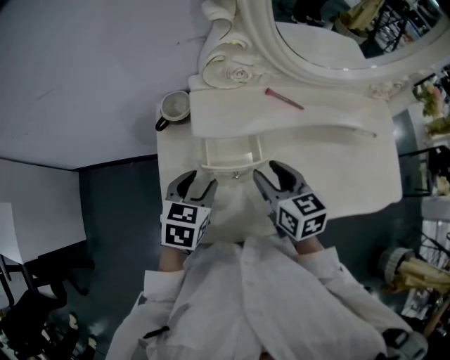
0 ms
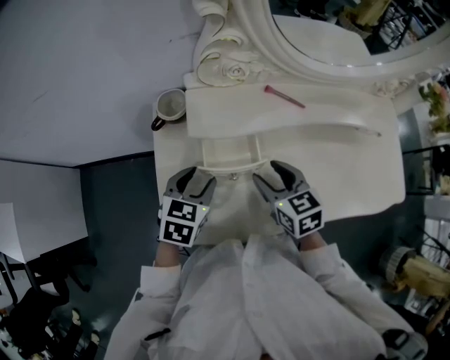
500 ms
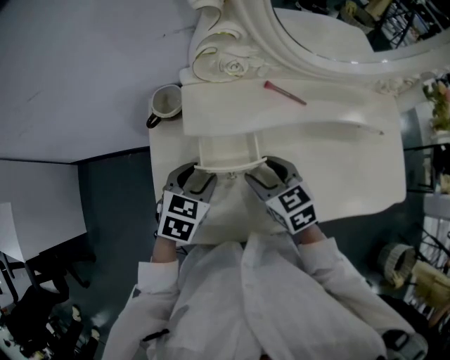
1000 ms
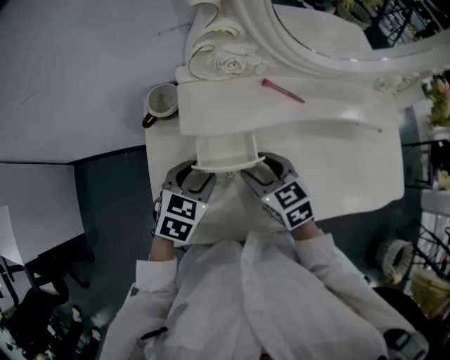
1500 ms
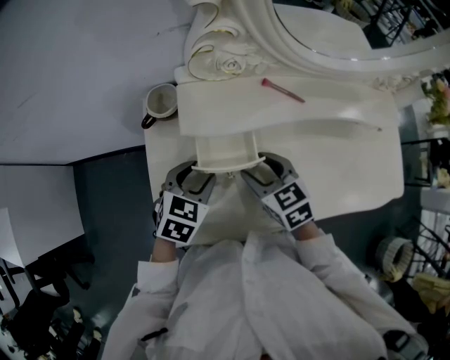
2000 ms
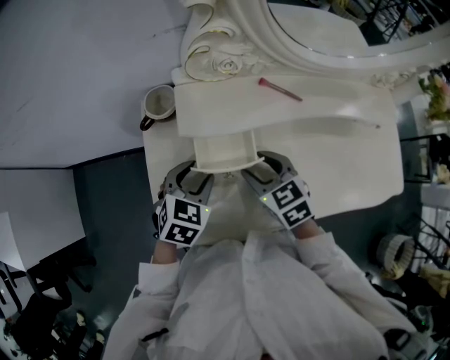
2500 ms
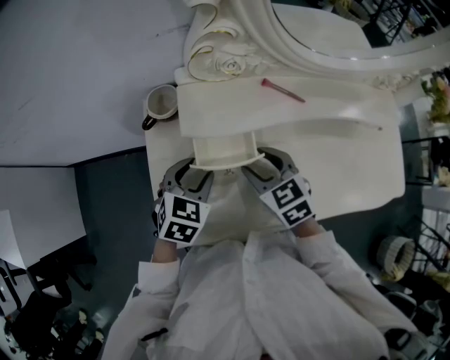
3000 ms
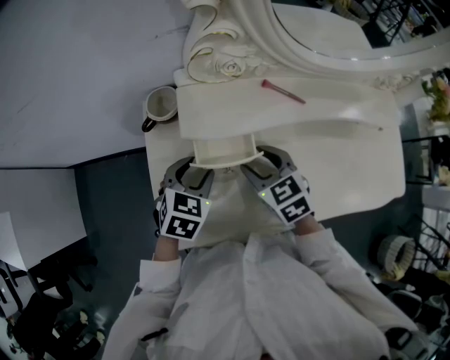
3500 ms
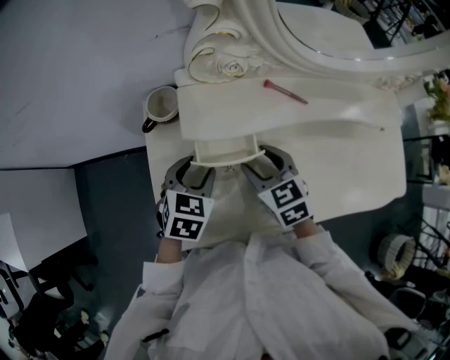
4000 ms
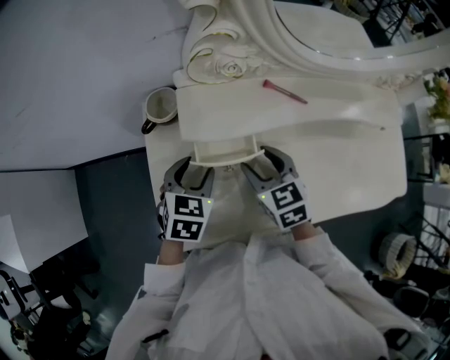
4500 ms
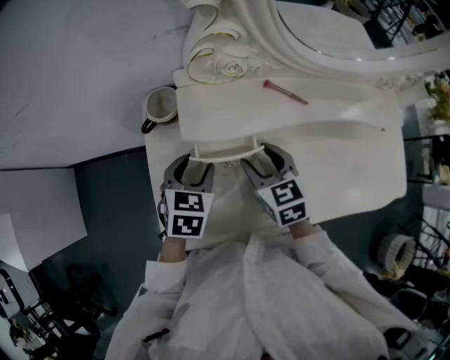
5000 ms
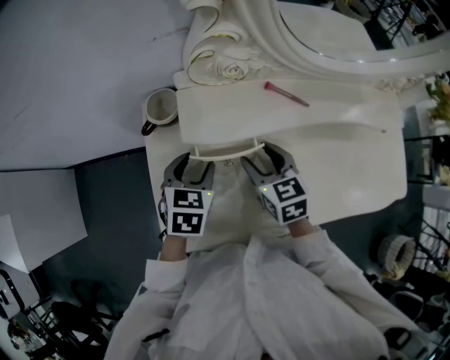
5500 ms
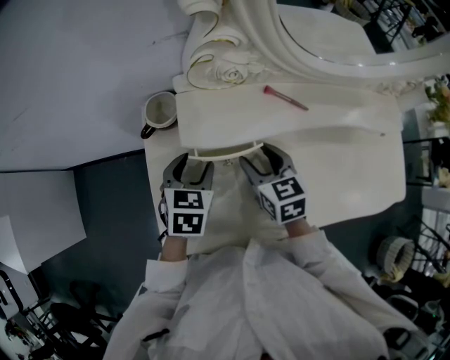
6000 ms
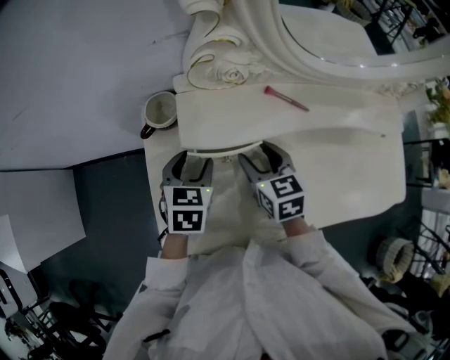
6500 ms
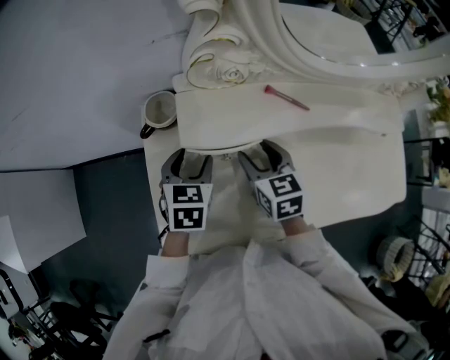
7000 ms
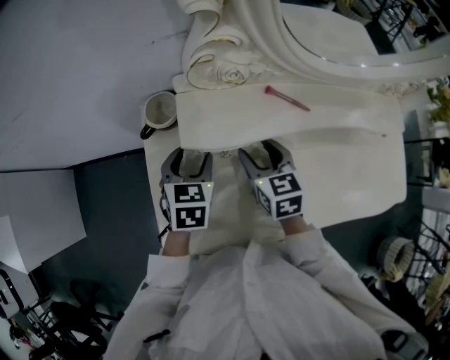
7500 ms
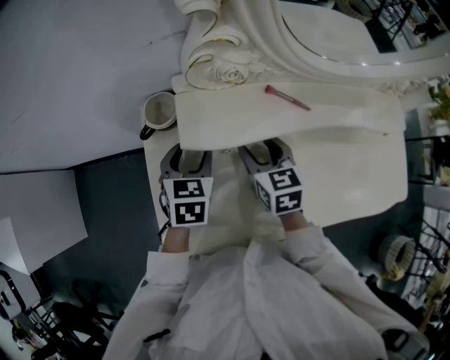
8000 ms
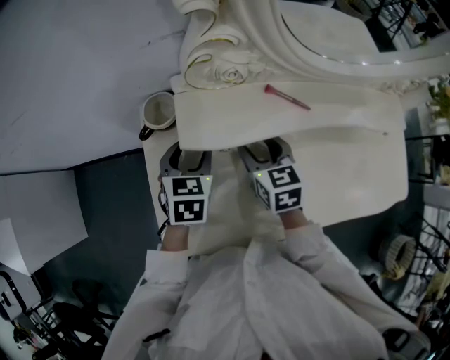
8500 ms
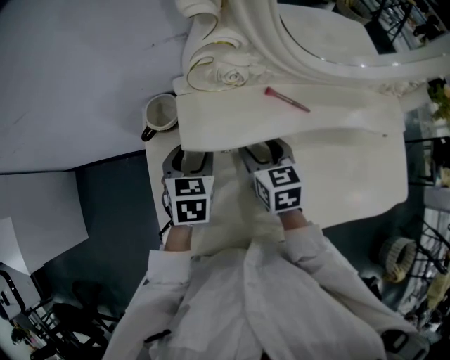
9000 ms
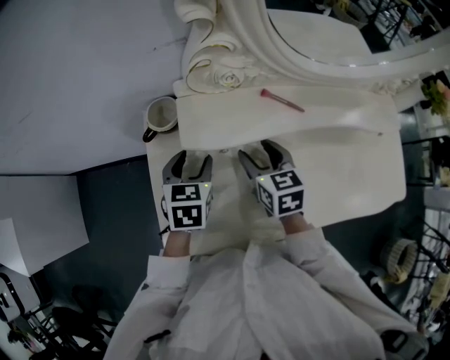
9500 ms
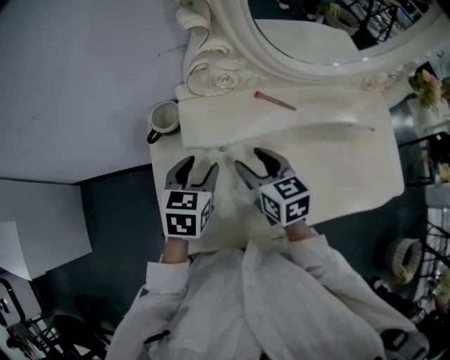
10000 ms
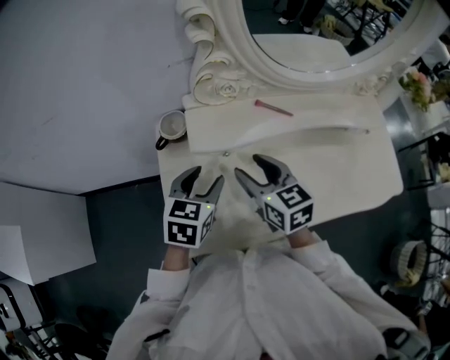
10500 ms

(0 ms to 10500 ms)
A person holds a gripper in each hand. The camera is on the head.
0 ms - 2000 ms: The right gripper is displaced downward by about 5 cm, and swivels approximately 20 degrees.
2000 ms - 4000 ms: The grippers stay close to where they were, moving slightly.
4000 ms - 6500 ms: The grippers move only a little.
6500 ms - 8500 ms: The grippers make only small movements.
8500 ms - 10500 ms: The right gripper travels upward and backward by approximately 10 cm. Meanwhile the left gripper is displaced backward and upward by some 10 cm.

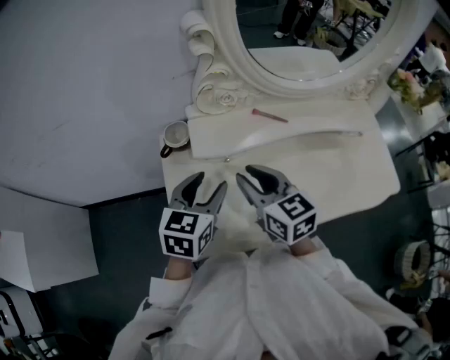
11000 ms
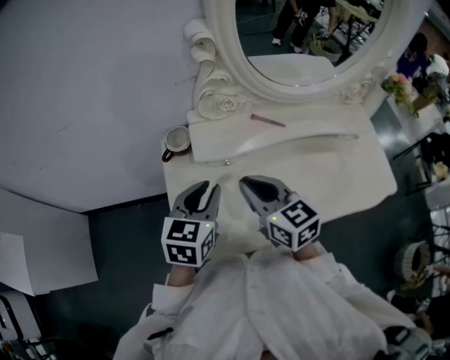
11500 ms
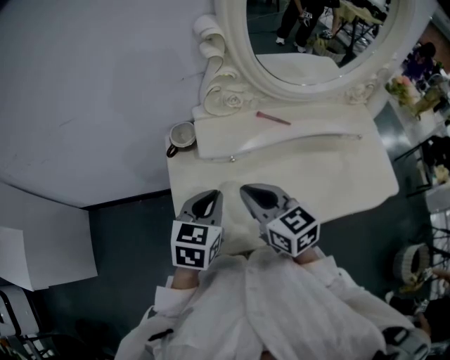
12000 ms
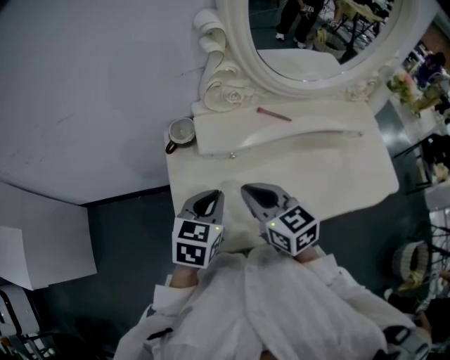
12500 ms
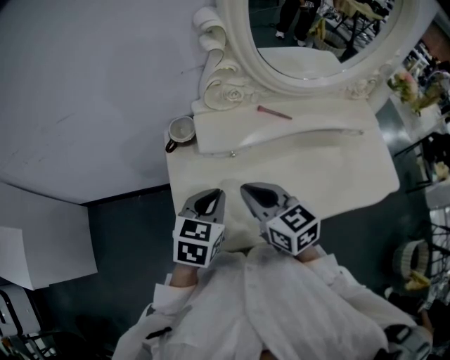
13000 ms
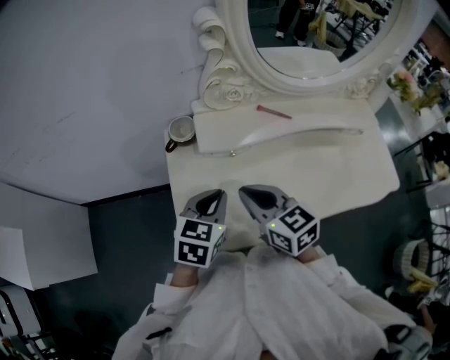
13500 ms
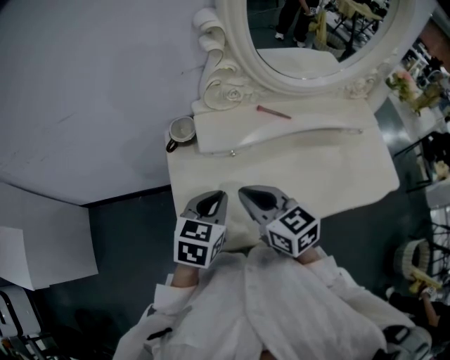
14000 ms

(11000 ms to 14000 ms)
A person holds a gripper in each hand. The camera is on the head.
11000 ms - 12500 ms: The right gripper changes place by roughly 5 cm, and closes its fingers. The left gripper shifts by approximately 5 cm, and closes.
12500 ms - 14000 ms: The grippers move only a little.

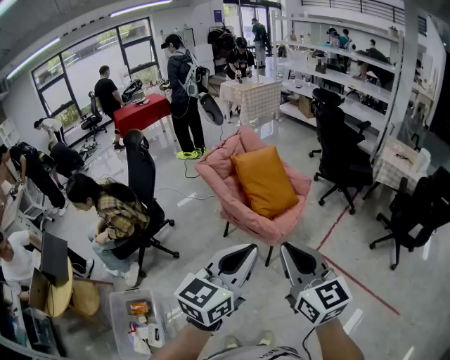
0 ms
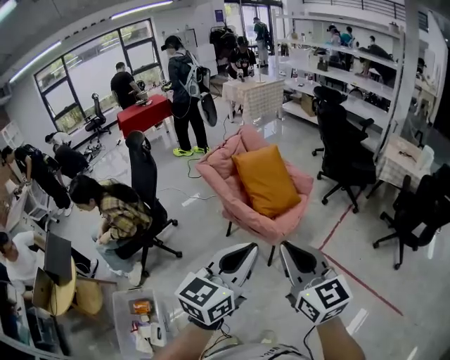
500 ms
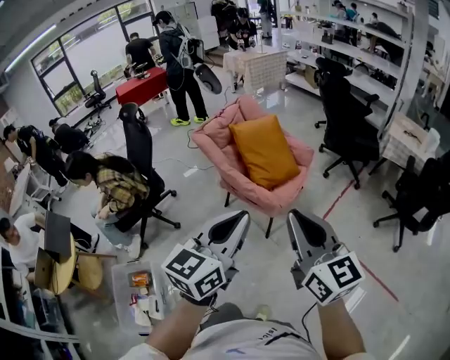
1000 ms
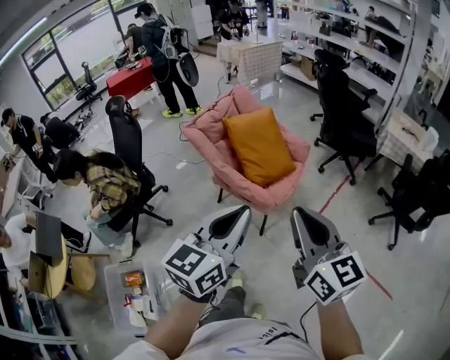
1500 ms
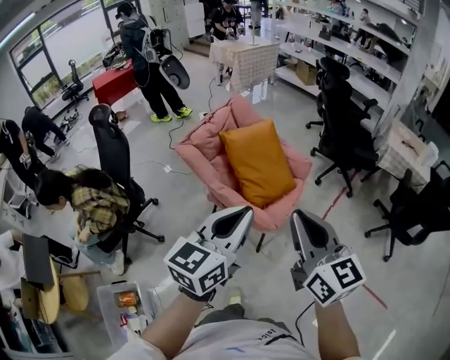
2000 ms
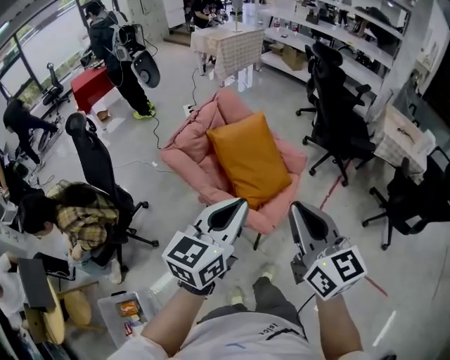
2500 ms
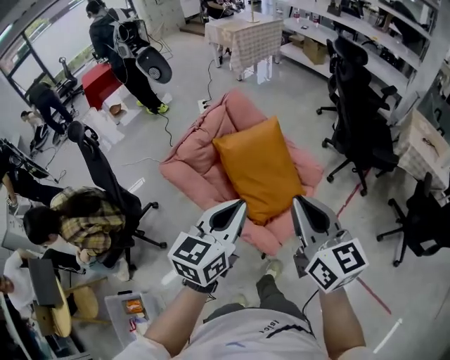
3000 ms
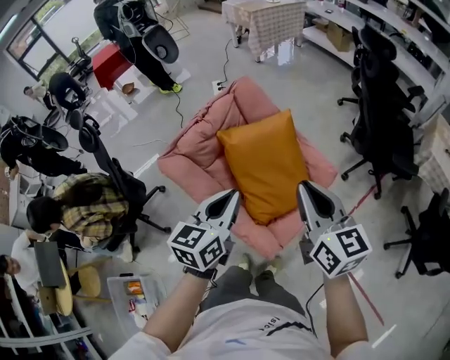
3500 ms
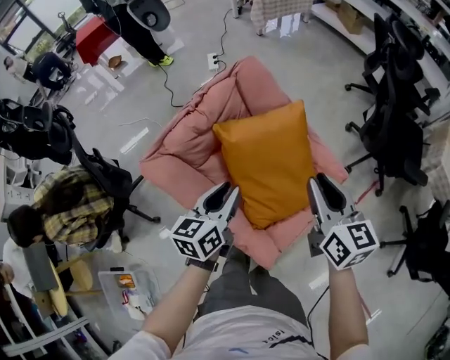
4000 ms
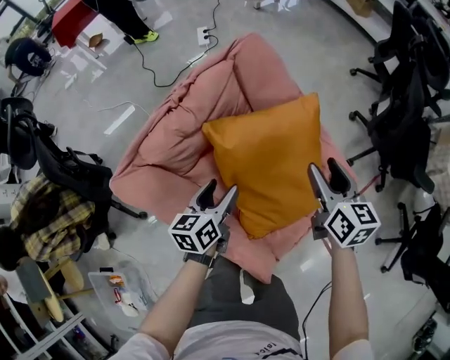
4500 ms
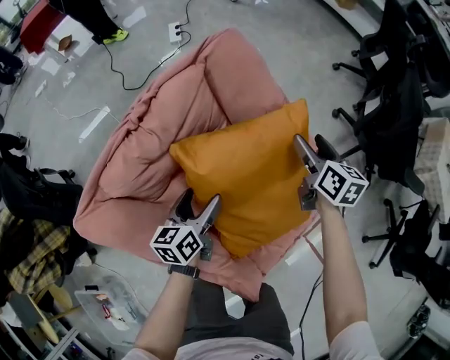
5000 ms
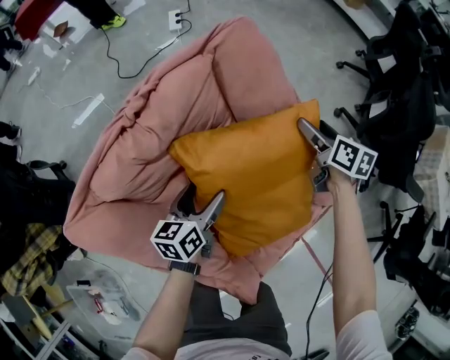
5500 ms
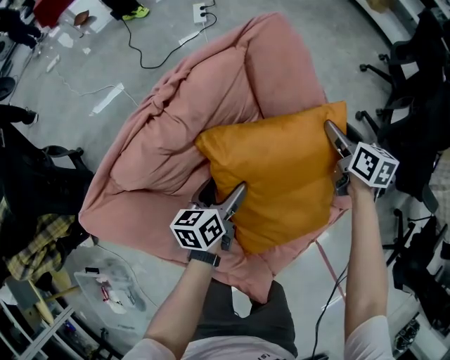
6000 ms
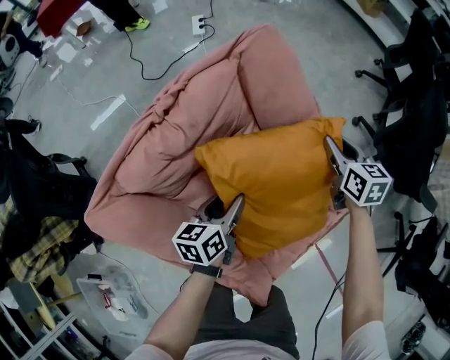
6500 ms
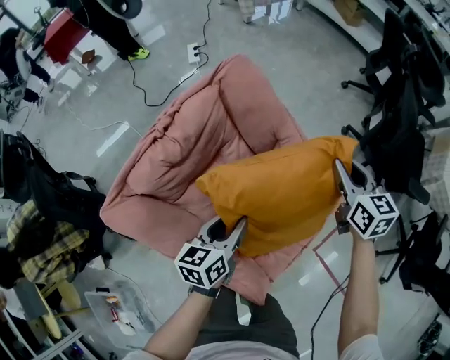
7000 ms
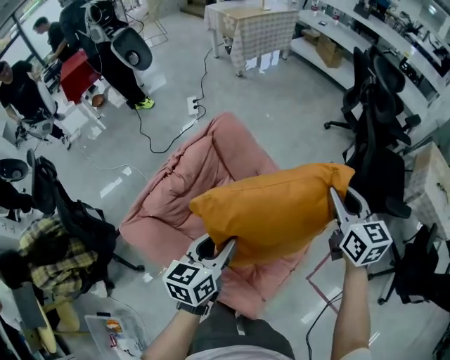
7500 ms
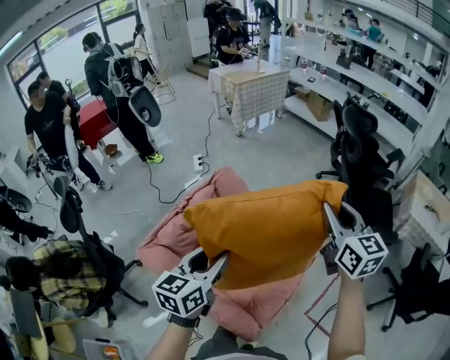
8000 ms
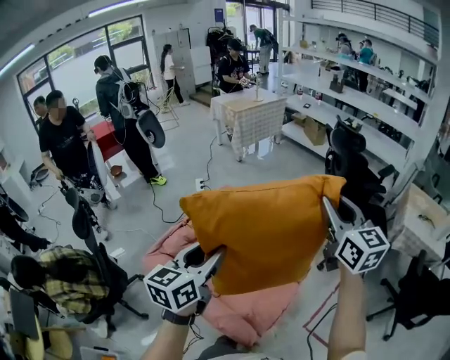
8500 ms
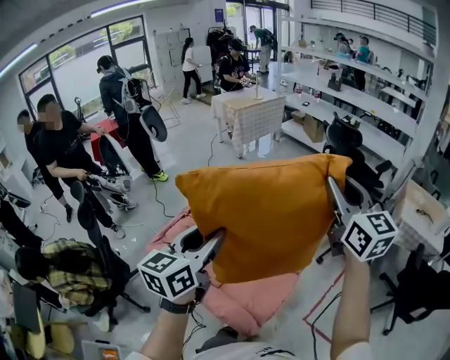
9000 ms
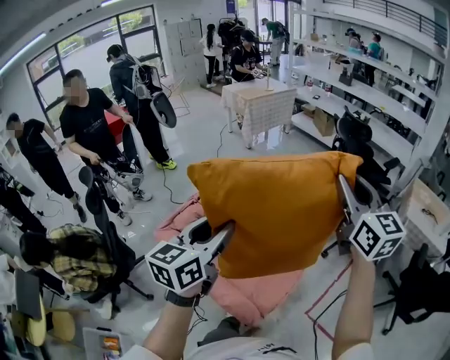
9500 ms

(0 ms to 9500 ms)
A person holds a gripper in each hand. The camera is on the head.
0 ms - 2000 ms: Both grippers move forward, some 25 cm.
2000 ms - 4000 ms: Both grippers are carried forward, approximately 50 cm. The left gripper moves downward, some 25 cm, and rotates some 30 degrees.
4000 ms - 5500 ms: The right gripper heads forward and downward, covering roughly 50 cm, rotates approximately 30 degrees, and opens. Meanwhile the left gripper heads downward and forward, covering about 30 cm, and opens up.
5500 ms - 7500 ms: The right gripper goes approximately 35 cm upward and backward, swivels approximately 30 degrees, and closes up, while the left gripper shifts approximately 30 cm upward, and closes its fingers.
7500 ms - 9500 ms: Both grippers travel together upward and backward, some 35 cm. The left gripper turns by about 20 degrees. Meanwhile the right gripper turns by some 20 degrees.

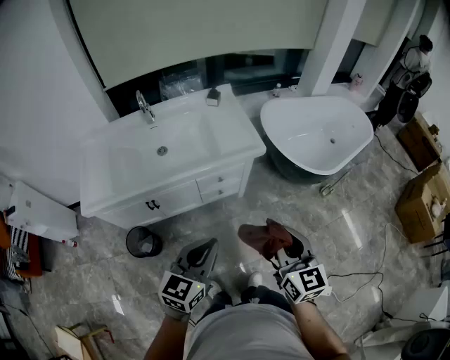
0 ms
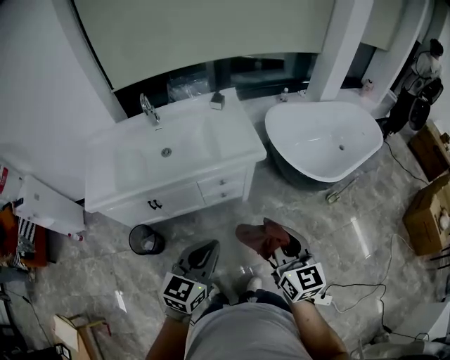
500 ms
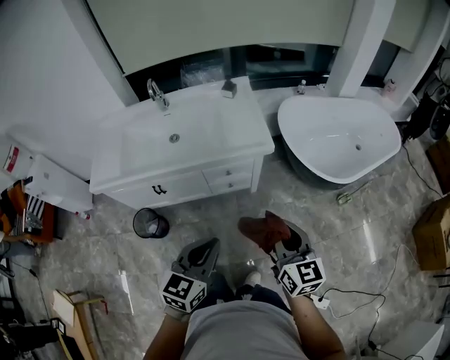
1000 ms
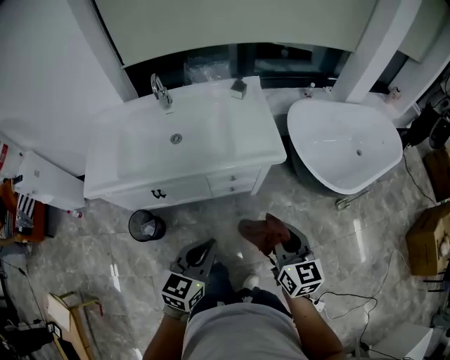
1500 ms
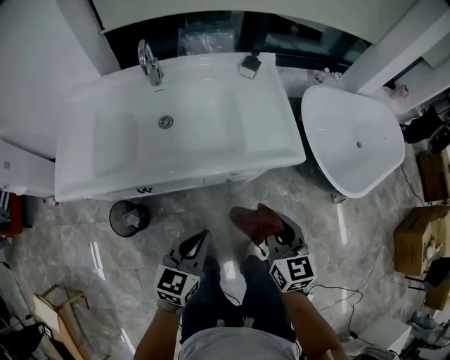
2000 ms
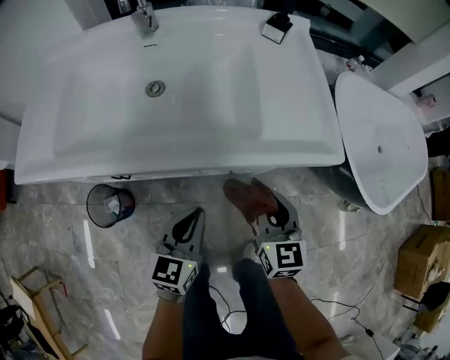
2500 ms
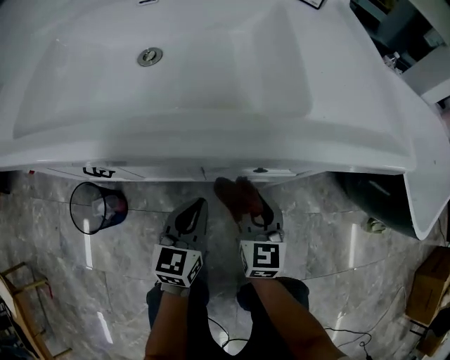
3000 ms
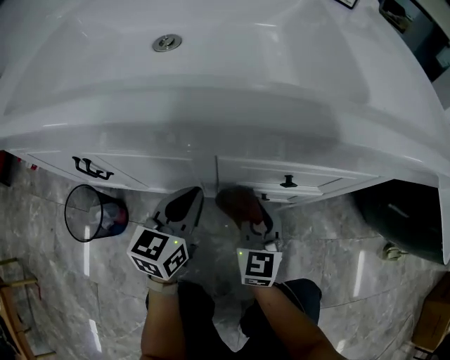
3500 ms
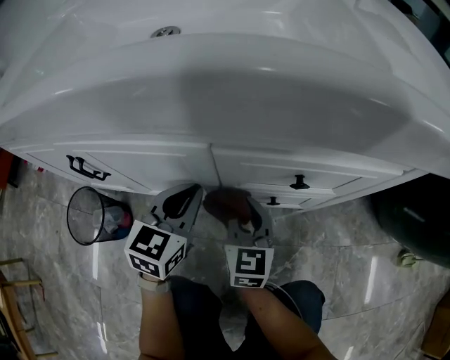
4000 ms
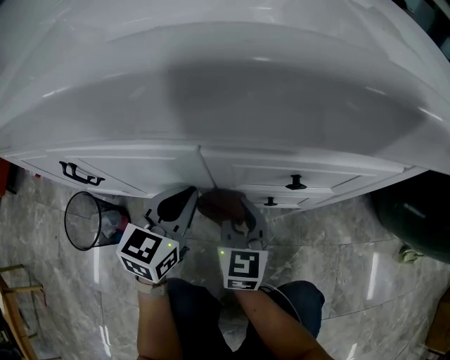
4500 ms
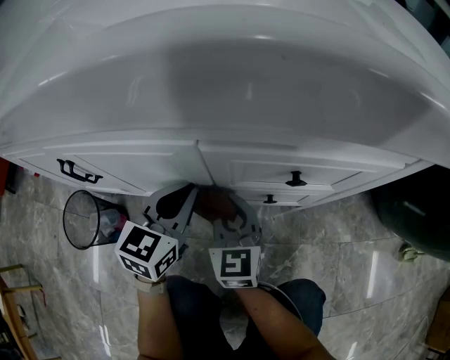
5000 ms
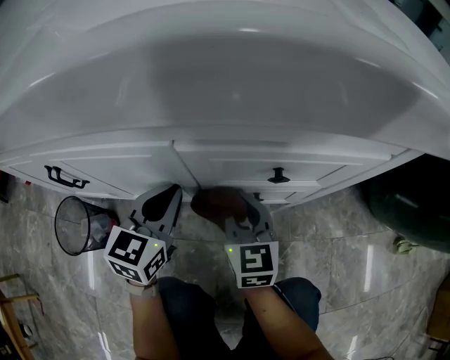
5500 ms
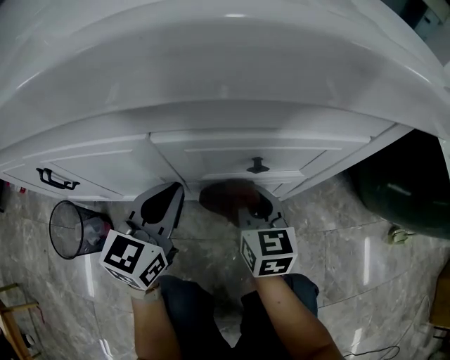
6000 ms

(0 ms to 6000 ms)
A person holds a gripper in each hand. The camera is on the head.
0 ms - 2000 ms: The right gripper travels forward and downward by about 25 cm, while the left gripper travels downward and forward by some 20 cm.
2000 ms - 4000 ms: The two grippers go some 50 cm downward.
4000 ms - 6000 ms: The right gripper travels to the right by some 10 cm; the left gripper shifts by about 5 cm.
